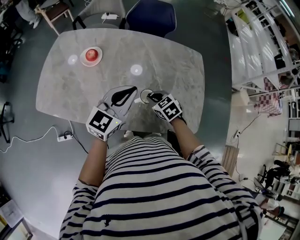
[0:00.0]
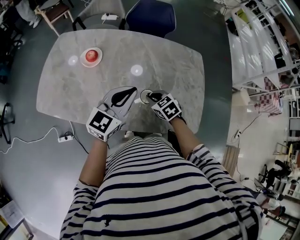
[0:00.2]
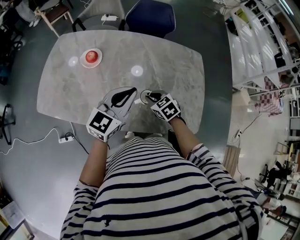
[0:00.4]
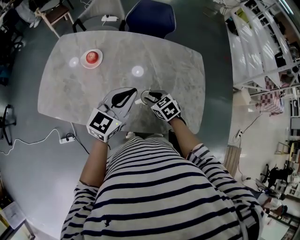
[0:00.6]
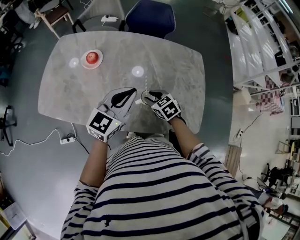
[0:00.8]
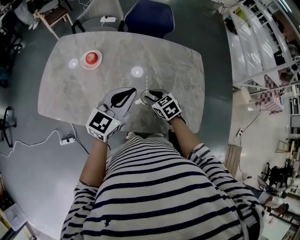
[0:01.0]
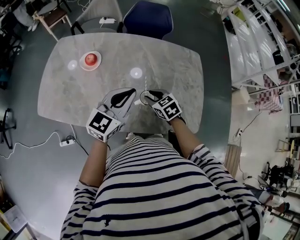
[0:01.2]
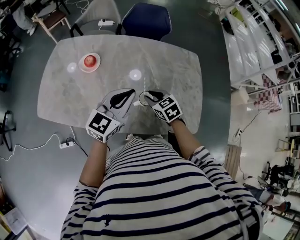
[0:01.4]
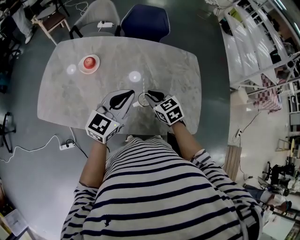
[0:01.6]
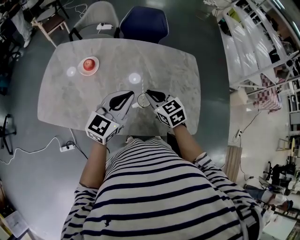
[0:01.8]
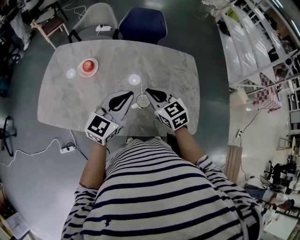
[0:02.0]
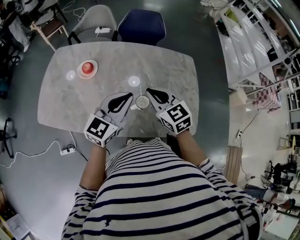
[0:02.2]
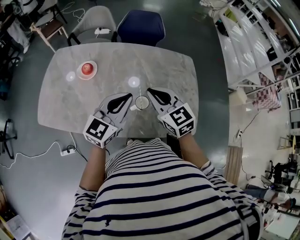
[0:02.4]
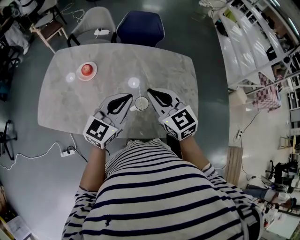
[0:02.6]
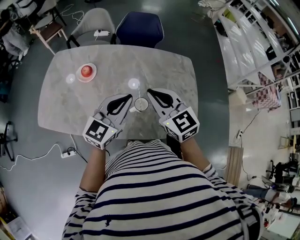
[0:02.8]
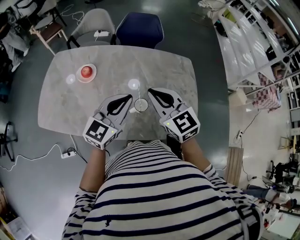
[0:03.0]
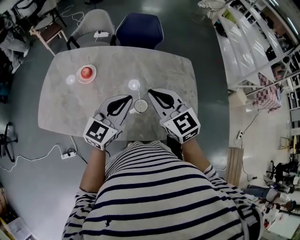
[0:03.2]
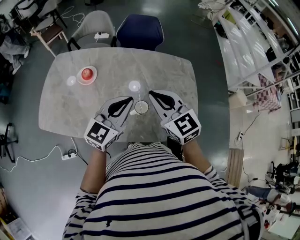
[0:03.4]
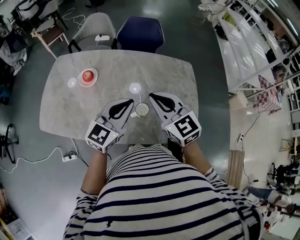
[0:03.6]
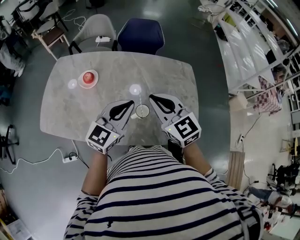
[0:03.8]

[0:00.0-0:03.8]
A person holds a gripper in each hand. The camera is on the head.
0:00.0 to 0:01.2: The right gripper opens its fingers.
0:01.2 to 0:02.6: The right gripper moves upward, roughly 20 cm, rotates roughly 30 degrees, and closes up.
0:02.6 to 0:03.8: There are only small adjustments of the grippers.

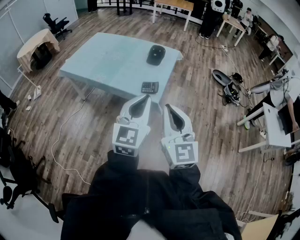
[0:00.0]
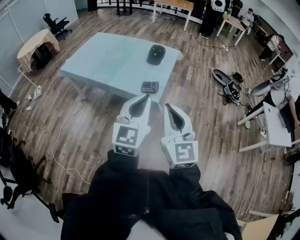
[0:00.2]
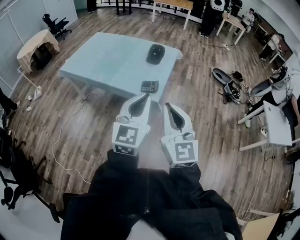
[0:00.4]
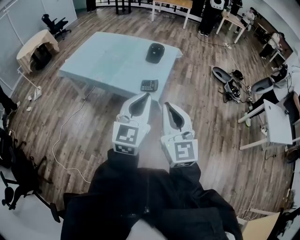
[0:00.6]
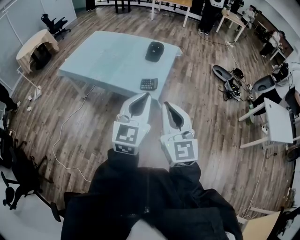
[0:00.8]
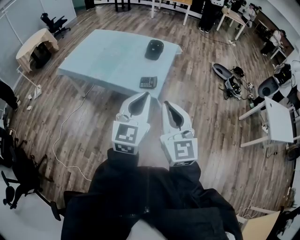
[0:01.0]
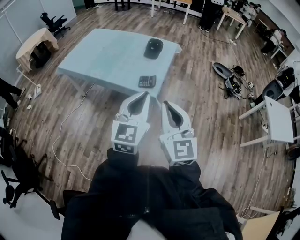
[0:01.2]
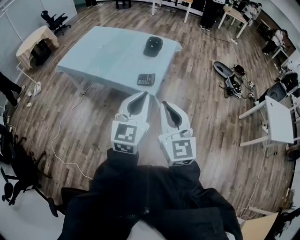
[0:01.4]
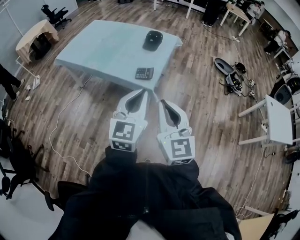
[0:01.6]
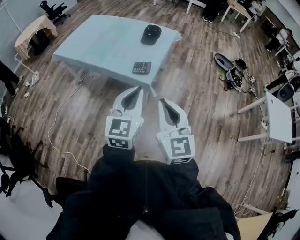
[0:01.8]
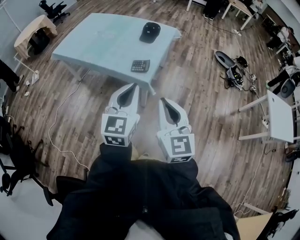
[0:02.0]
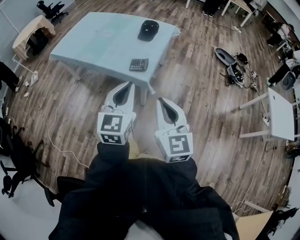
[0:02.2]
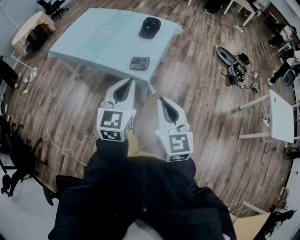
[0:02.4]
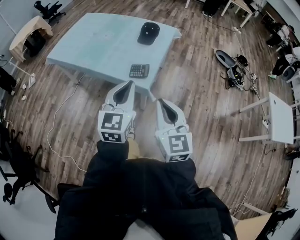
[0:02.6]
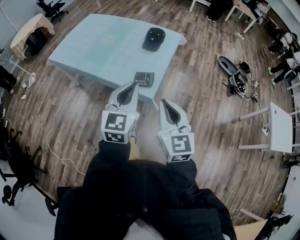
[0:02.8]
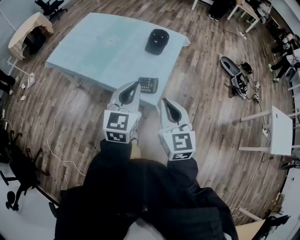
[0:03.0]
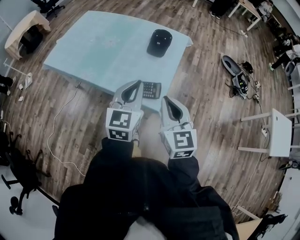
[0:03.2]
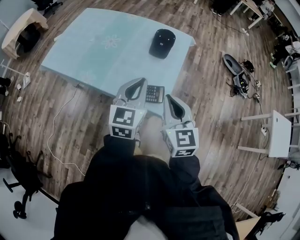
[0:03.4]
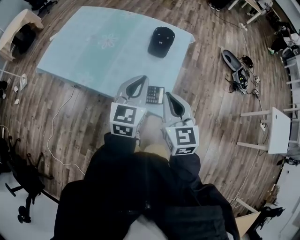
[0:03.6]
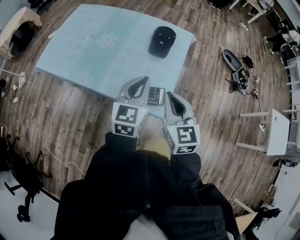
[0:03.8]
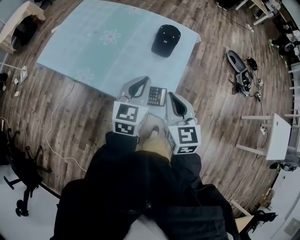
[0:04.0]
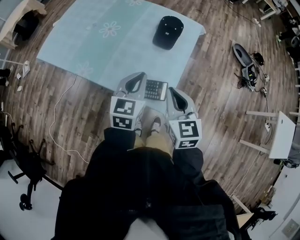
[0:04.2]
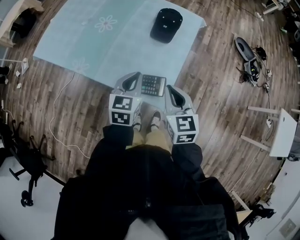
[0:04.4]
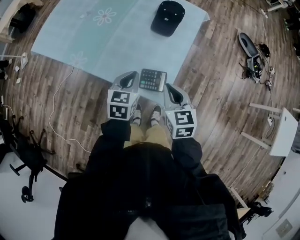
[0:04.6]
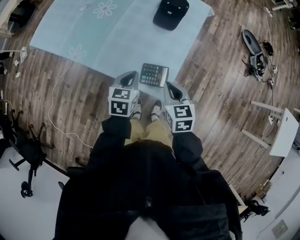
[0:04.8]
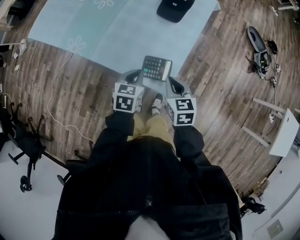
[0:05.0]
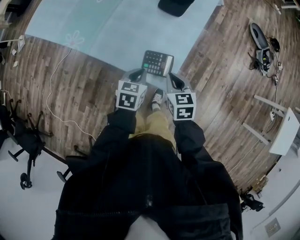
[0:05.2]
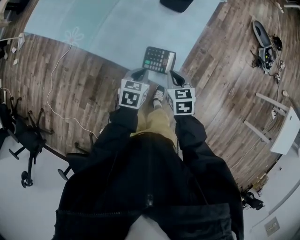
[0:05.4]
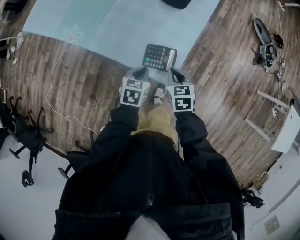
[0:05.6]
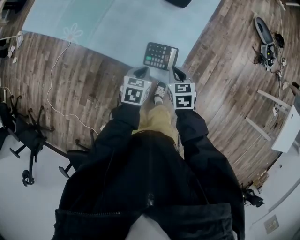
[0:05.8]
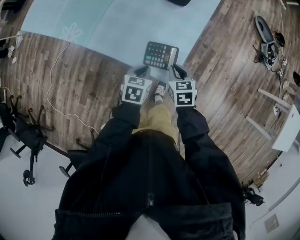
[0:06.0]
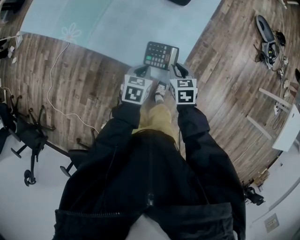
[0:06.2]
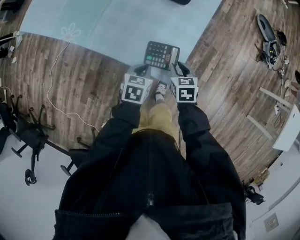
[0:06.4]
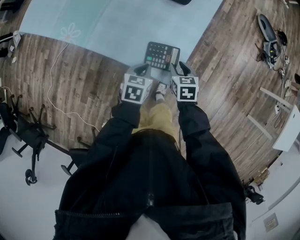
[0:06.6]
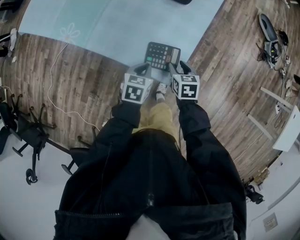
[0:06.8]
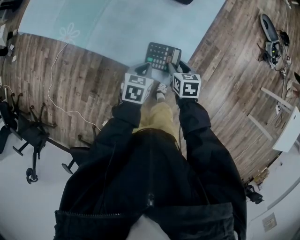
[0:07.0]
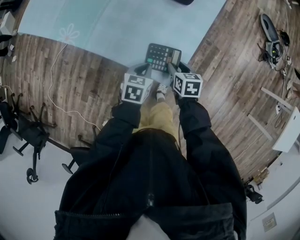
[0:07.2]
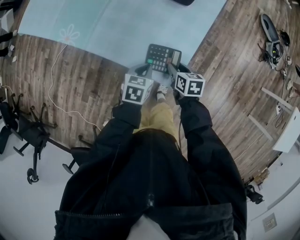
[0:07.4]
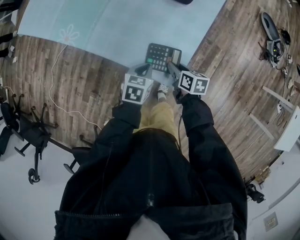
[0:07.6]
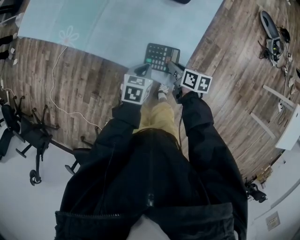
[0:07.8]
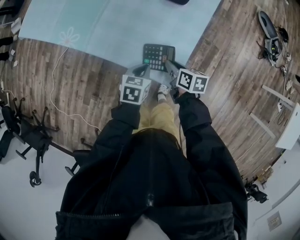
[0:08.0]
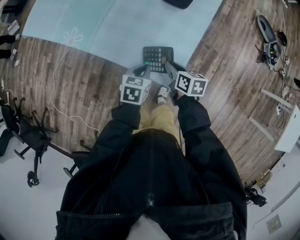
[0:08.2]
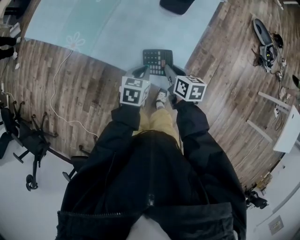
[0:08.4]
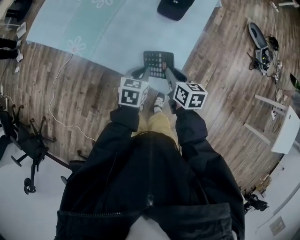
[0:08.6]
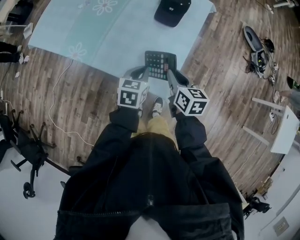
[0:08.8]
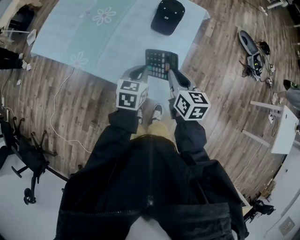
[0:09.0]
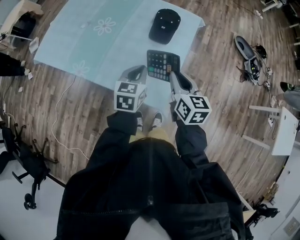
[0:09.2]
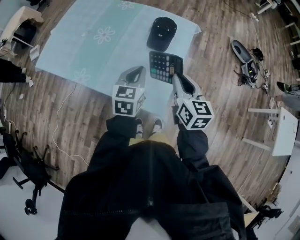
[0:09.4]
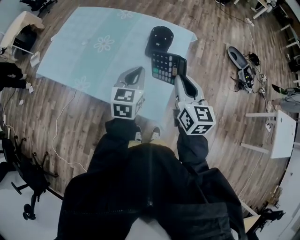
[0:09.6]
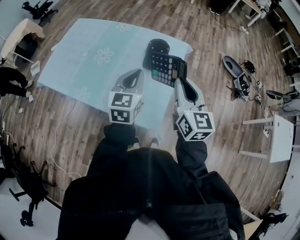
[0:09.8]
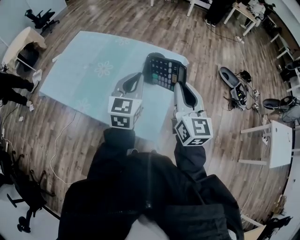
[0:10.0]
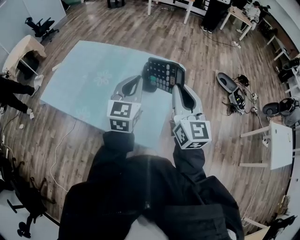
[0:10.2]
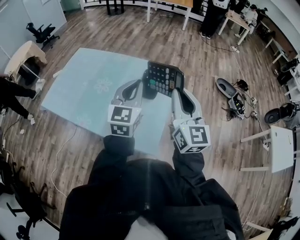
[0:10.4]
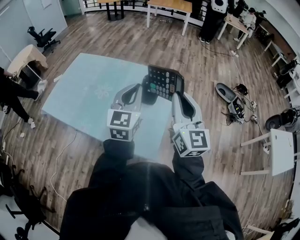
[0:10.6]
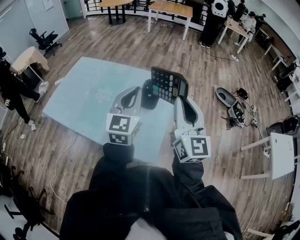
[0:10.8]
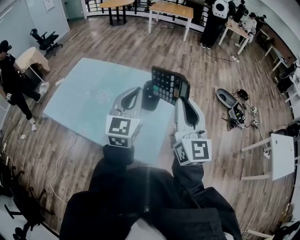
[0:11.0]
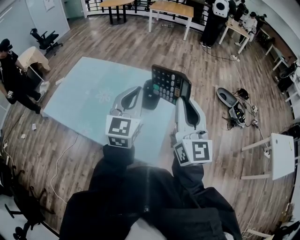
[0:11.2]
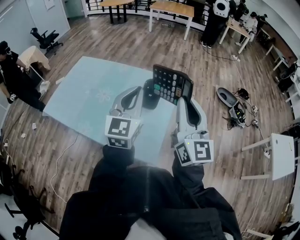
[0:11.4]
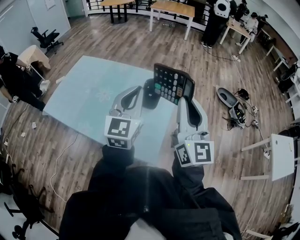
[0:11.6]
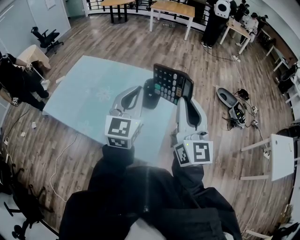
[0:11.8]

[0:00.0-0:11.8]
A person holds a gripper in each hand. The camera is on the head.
0:00.0 to 0:01.4: The grippers make only small movements.
0:01.4 to 0:03.0: The left gripper travels forward by some 20 cm, while the right gripper shifts roughly 20 cm forward and downward.
0:03.0 to 0:04.4: The grippers both shift forward and downward by approximately 25 cm. The left gripper rotates about 20 degrees.
0:04.4 to 0:06.0: Both grippers travel together downward, roughly 25 cm. The right gripper changes its angle by approximately 30 degrees, while the left gripper turns by approximately 30 degrees.
0:06.0 to 0:07.4: The right gripper shifts some 5 cm downward, rotates about 20 degrees, and opens up.
0:07.4 to 0:08.8: The right gripper travels upward by roughly 20 cm, rotates roughly 20 degrees, and closes its fingers. The left gripper moves upward, some 10 cm.
0:08.8 to 0:10.4: The two grippers go roughly 35 cm upward. The left gripper tilts its fingers about 40 degrees upward; the right gripper points its fingers approximately 40 degrees further upward.
0:10.4 to 0:11.8: The two grippers go about 5 cm upward.

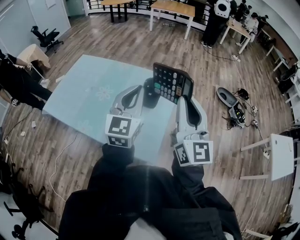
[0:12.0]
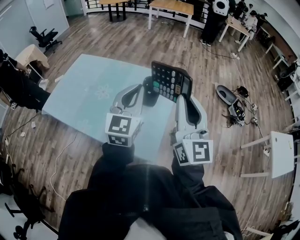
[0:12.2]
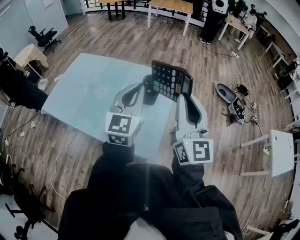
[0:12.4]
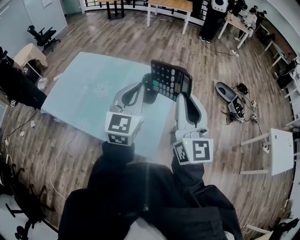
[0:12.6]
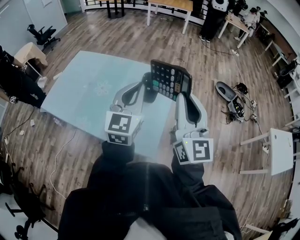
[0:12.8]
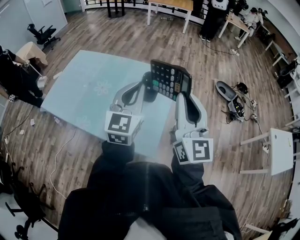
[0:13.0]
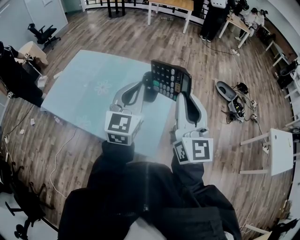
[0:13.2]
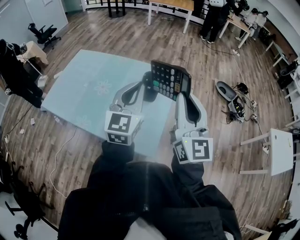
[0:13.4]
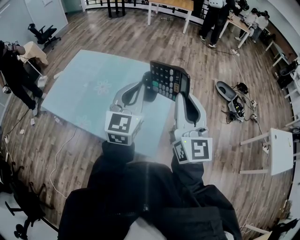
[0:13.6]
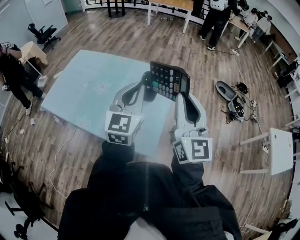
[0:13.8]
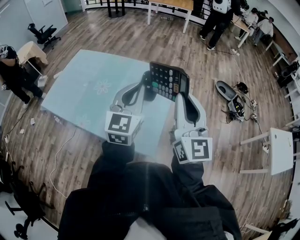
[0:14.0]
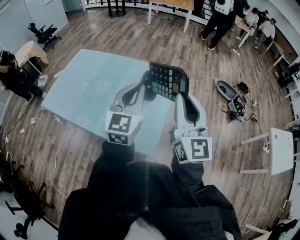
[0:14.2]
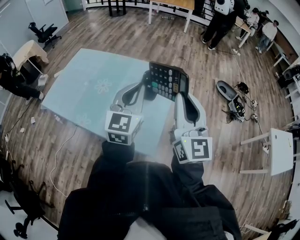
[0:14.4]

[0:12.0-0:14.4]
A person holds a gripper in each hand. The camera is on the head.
0:12.0 to 0:13.2: Both grippers stay put.
0:13.2 to 0:14.4: The grippers stay close to where they were, moving slightly.

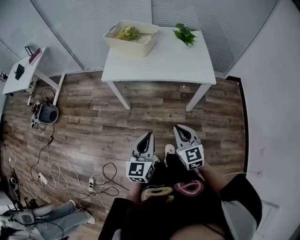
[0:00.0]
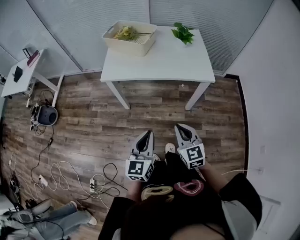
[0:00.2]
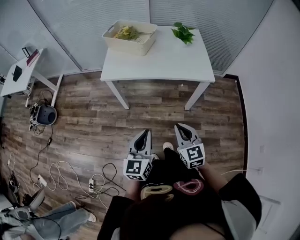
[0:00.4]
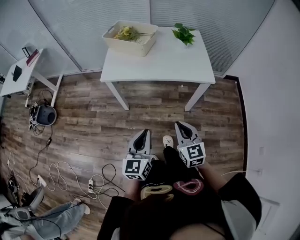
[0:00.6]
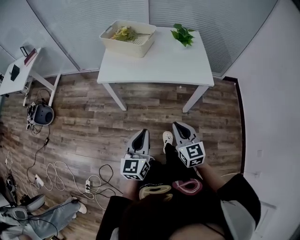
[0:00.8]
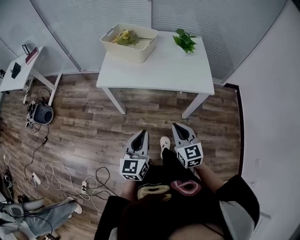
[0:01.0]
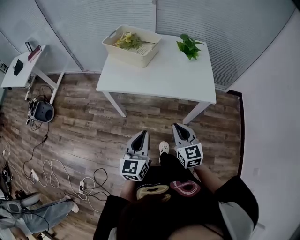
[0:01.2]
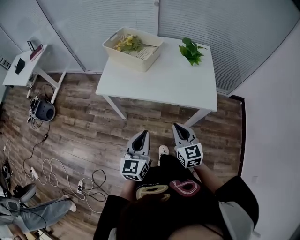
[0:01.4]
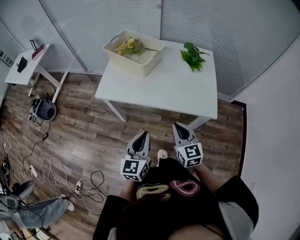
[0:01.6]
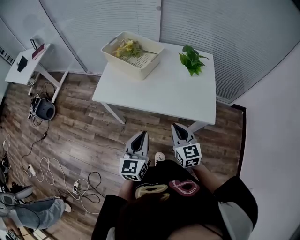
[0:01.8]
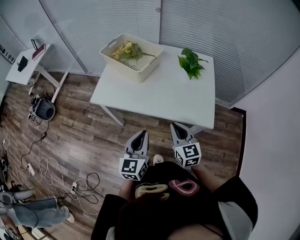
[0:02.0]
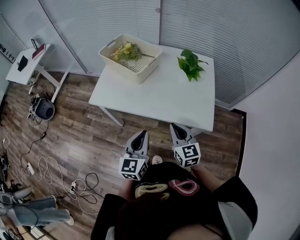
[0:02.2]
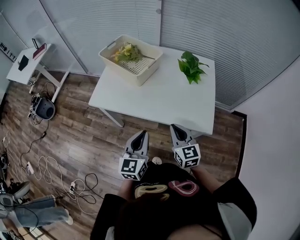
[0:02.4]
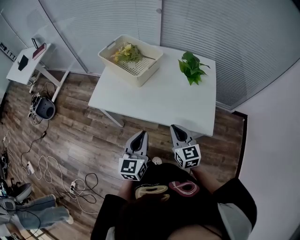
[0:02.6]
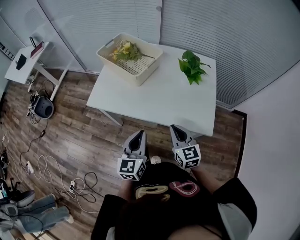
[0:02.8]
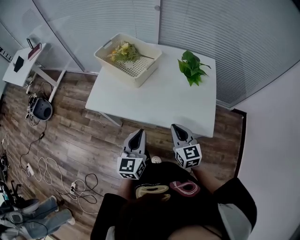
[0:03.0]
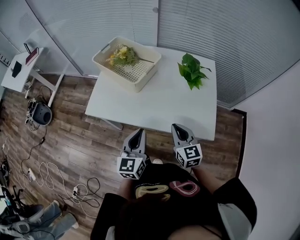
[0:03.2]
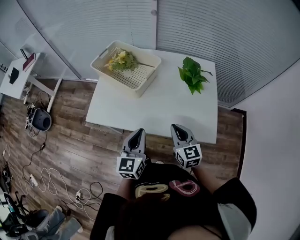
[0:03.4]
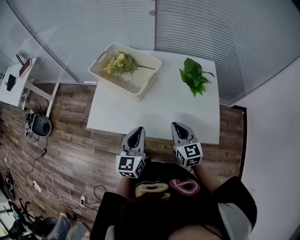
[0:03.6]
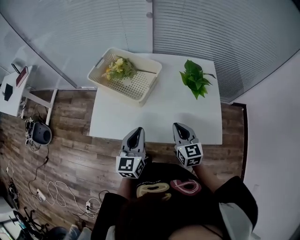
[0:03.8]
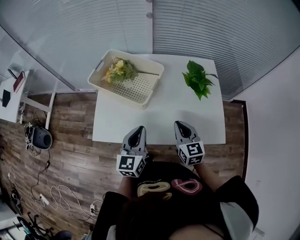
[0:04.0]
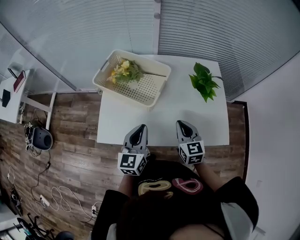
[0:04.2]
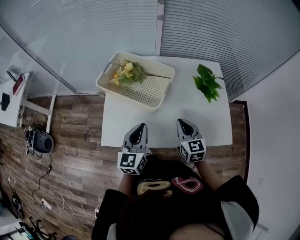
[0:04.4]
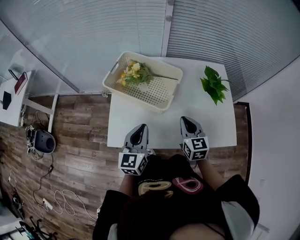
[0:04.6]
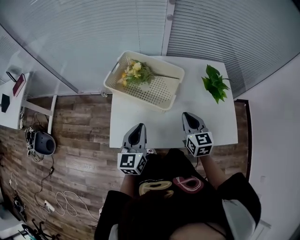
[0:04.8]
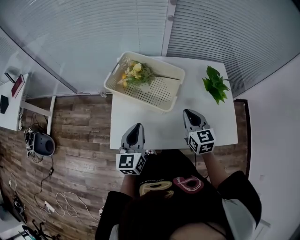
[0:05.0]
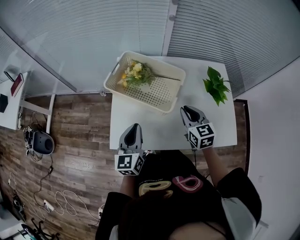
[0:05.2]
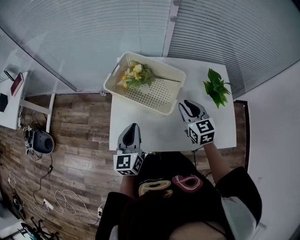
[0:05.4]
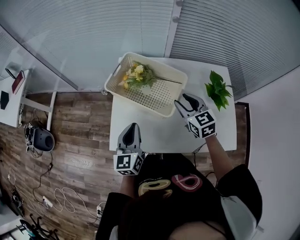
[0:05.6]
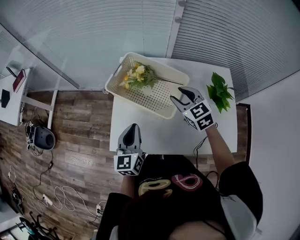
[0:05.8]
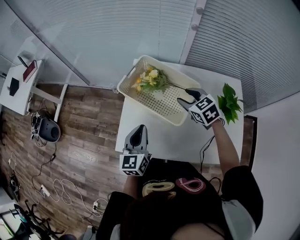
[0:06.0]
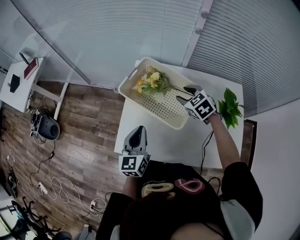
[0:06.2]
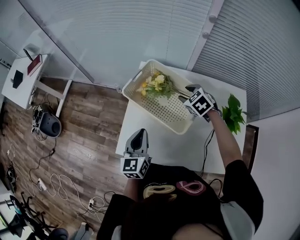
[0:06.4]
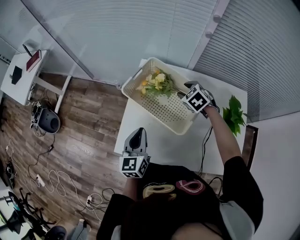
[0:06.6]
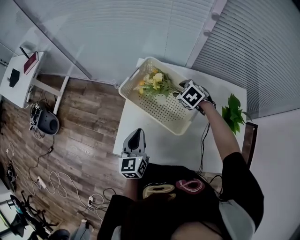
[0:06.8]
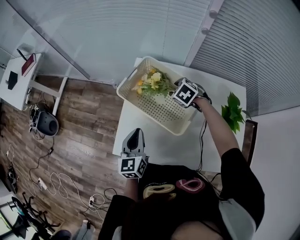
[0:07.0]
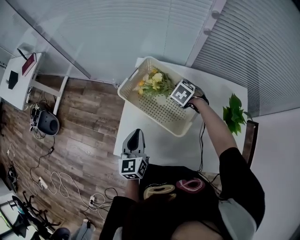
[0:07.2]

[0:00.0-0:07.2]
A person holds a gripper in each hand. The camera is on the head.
0:00.0 to 0:01.4: The two grippers go approximately 15 cm forward.
0:01.4 to 0:02.8: Both grippers travel together forward and to the right, roughly 15 cm.
0:02.8 to 0:04.4: Both grippers move forward and to the left, roughly 25 cm.
0:04.4 to 0:05.8: The right gripper is displaced forward and to the left by some 20 cm, rotates approximately 30 degrees, and opens up. The left gripper travels to the left and forward by about 10 cm.
0:05.8 to 0:07.2: The right gripper goes about 20 cm forward and downward, and tips its fingers downward by roughly 40 degrees. The left gripper changes place by about 5 cm.
